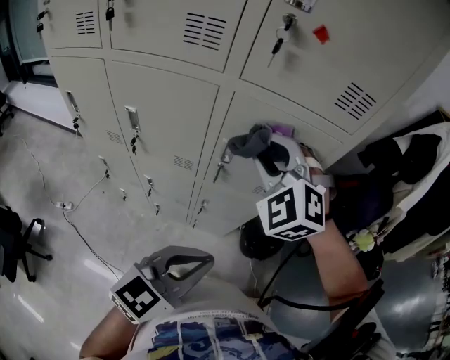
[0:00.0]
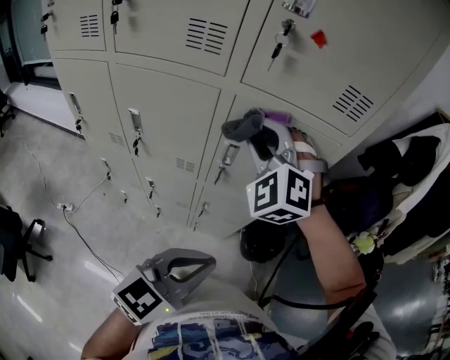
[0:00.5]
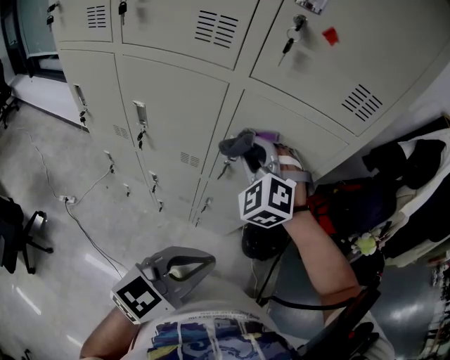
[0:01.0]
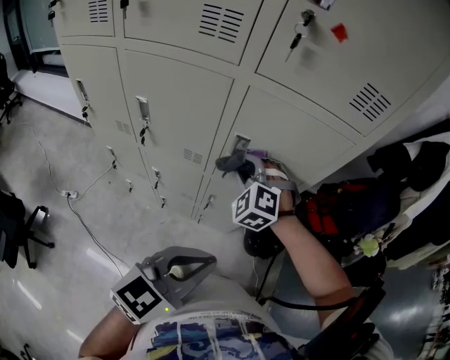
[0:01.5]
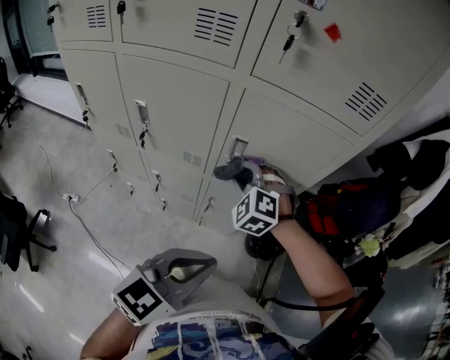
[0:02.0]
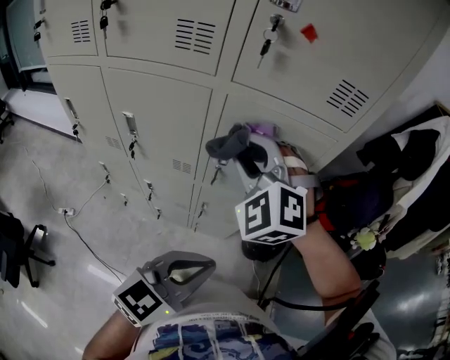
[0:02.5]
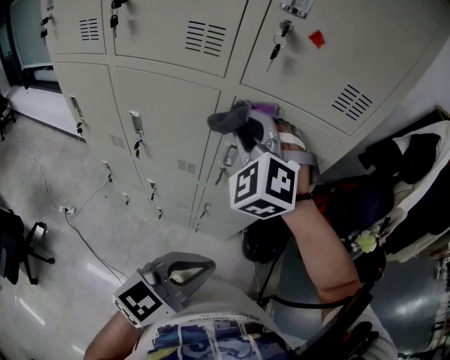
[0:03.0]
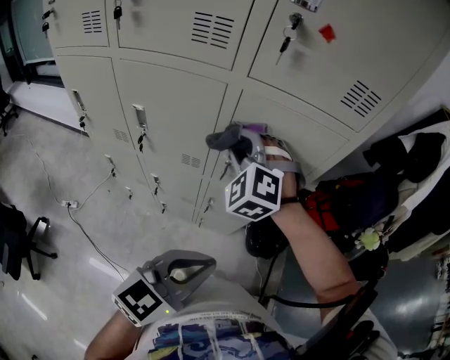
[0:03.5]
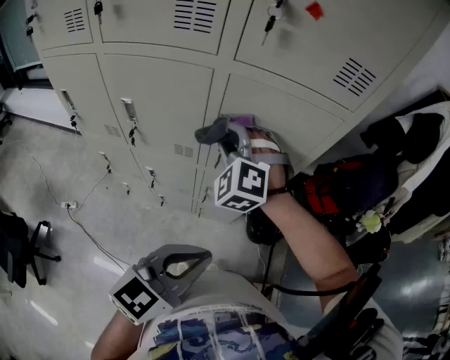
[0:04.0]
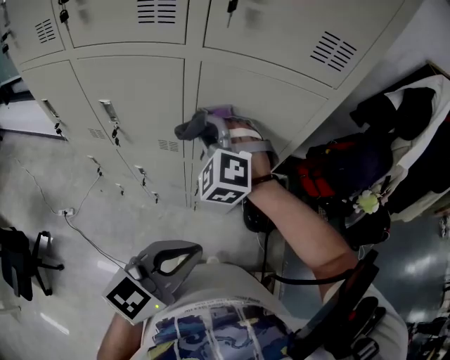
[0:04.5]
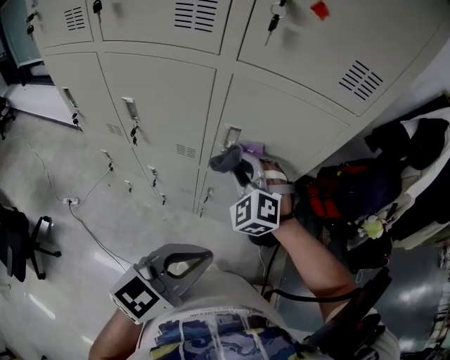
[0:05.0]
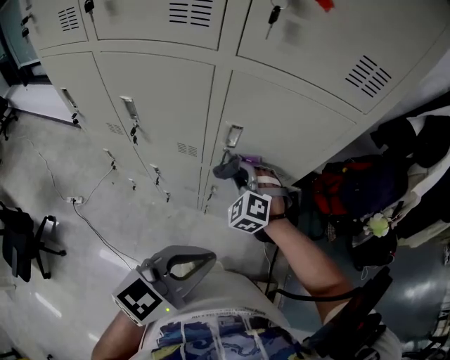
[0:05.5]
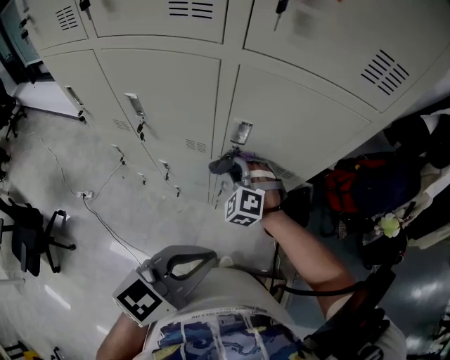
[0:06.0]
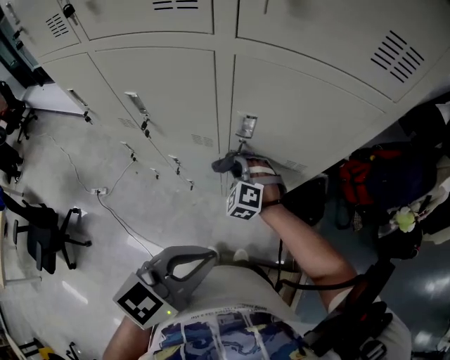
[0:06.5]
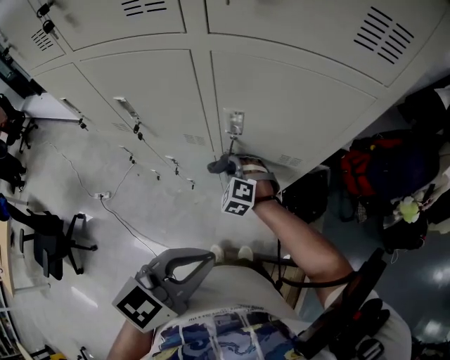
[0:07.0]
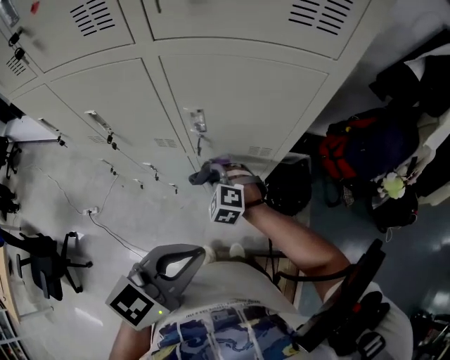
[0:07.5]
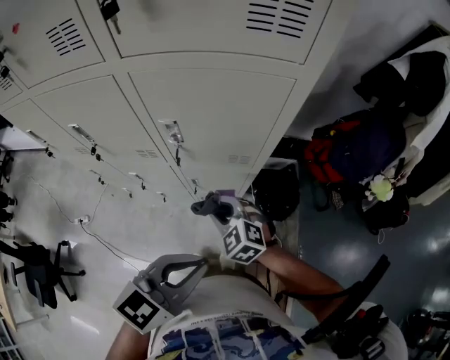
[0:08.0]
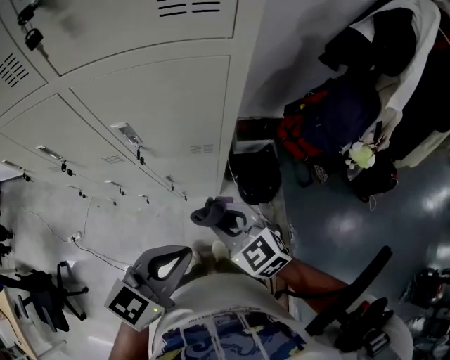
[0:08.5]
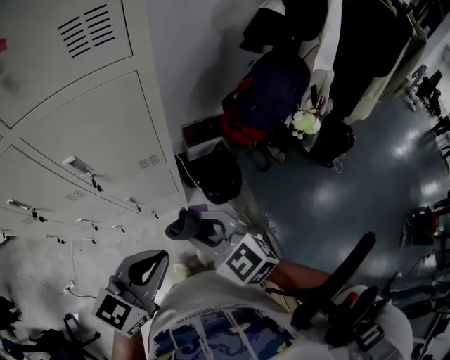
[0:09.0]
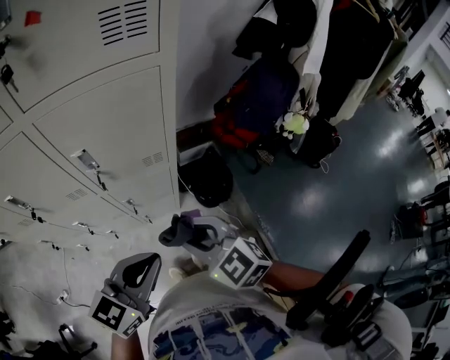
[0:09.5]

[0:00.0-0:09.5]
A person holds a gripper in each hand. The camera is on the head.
0.0 to 2.0 s: The right gripper heads downward, covering some 20 cm.
2.0 to 4.0 s: The right gripper heads upward, covering about 10 cm.
4.0 to 5.5 s: The right gripper goes about 15 cm downward.
5.5 to 7.5 s: The right gripper travels downward by about 10 cm.
7.5 to 9.5 s: The right gripper is displaced upward, backward and to the right by roughly 30 cm, and rotates around the line of its fingers by some 40 degrees, clockwise from behind.

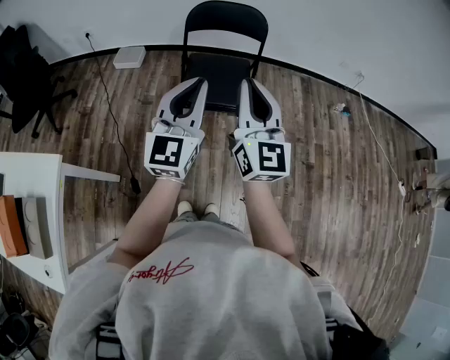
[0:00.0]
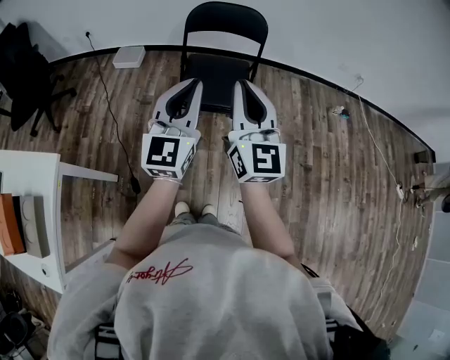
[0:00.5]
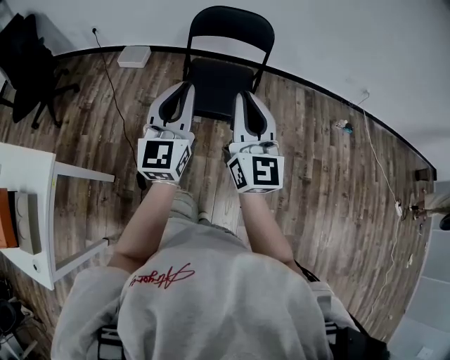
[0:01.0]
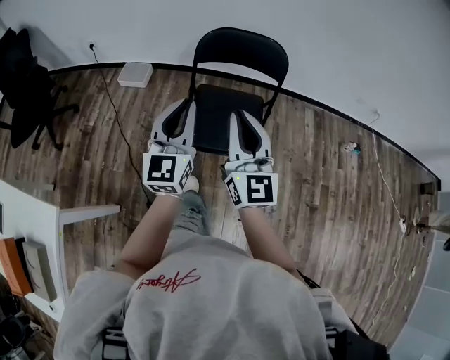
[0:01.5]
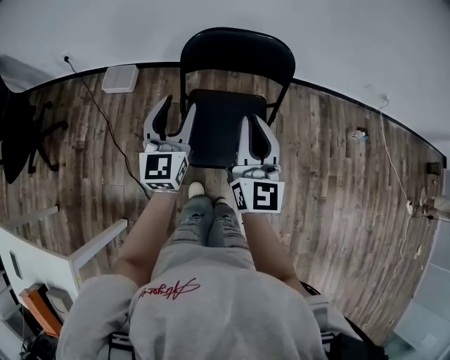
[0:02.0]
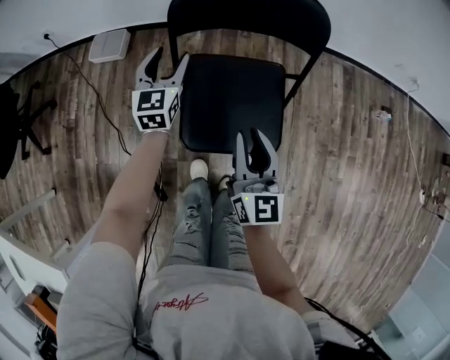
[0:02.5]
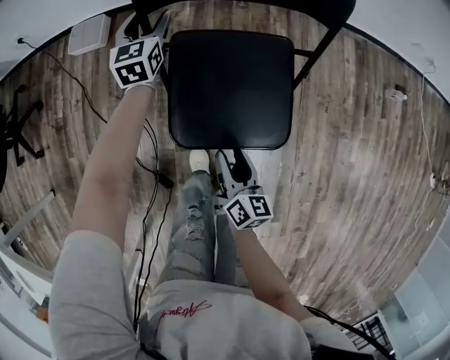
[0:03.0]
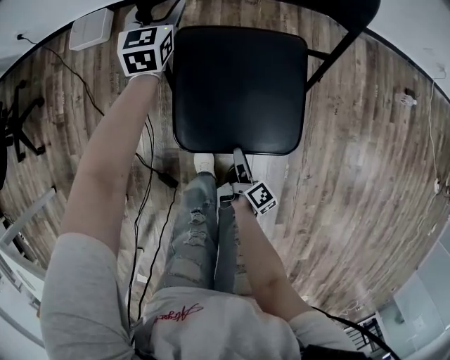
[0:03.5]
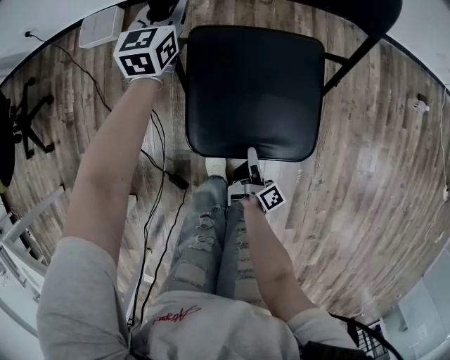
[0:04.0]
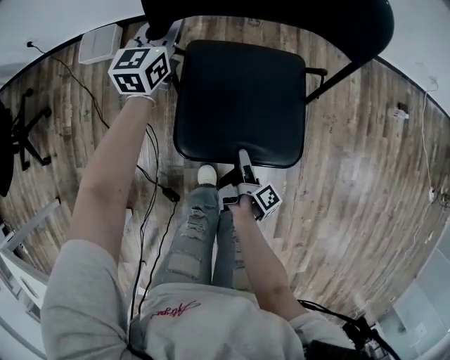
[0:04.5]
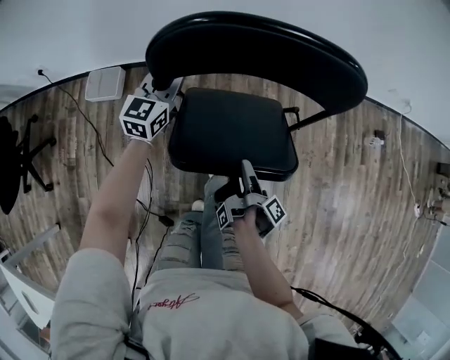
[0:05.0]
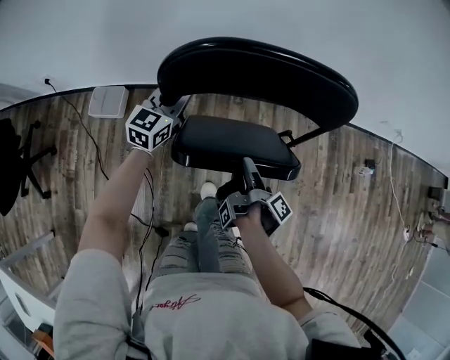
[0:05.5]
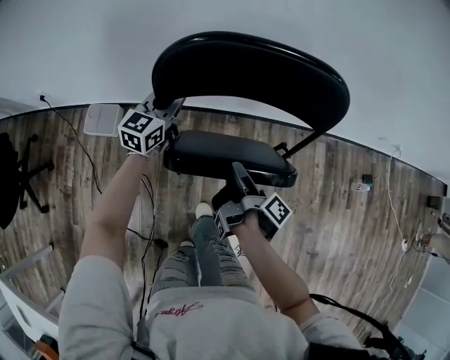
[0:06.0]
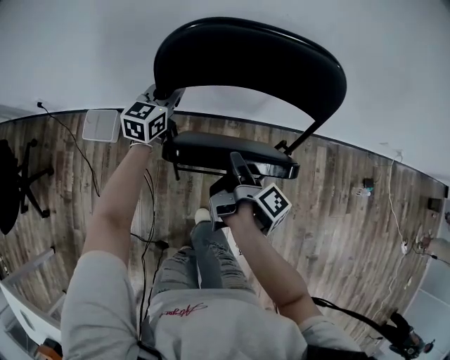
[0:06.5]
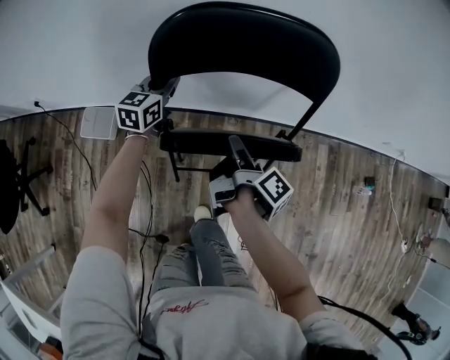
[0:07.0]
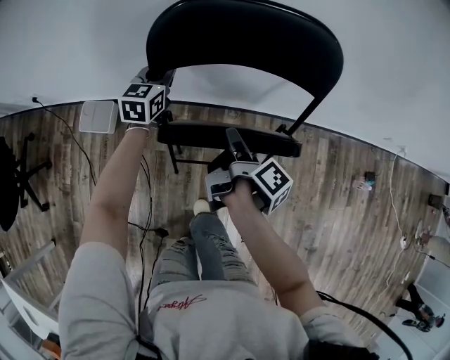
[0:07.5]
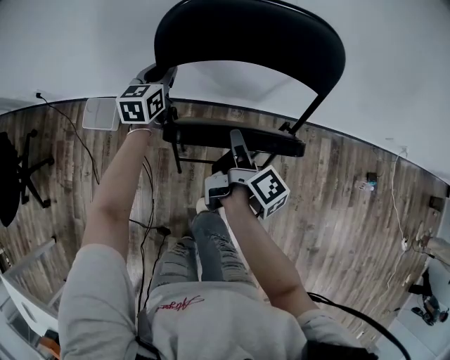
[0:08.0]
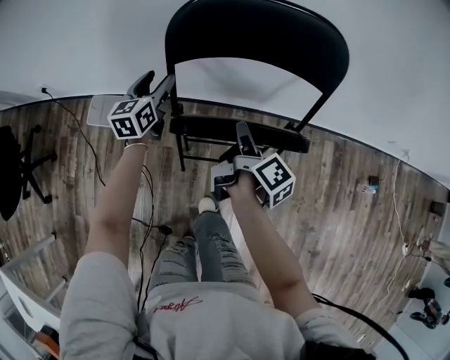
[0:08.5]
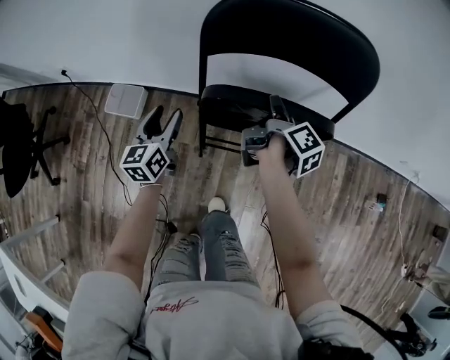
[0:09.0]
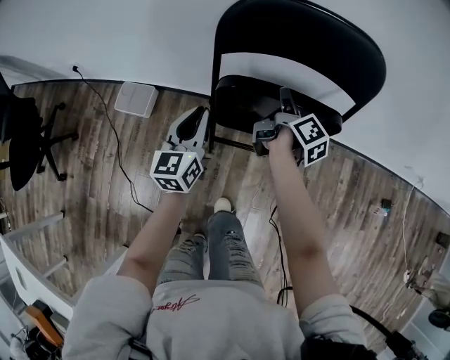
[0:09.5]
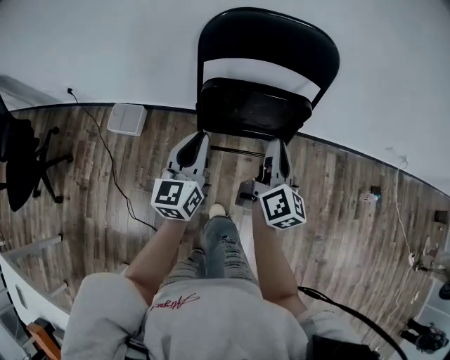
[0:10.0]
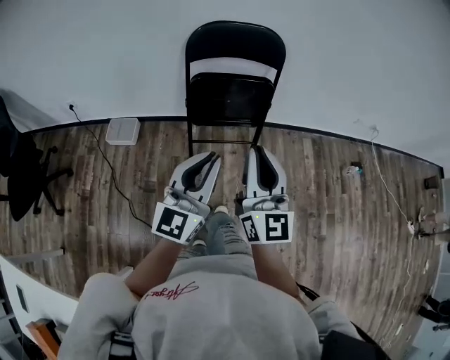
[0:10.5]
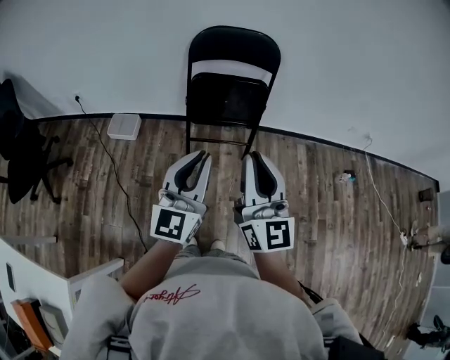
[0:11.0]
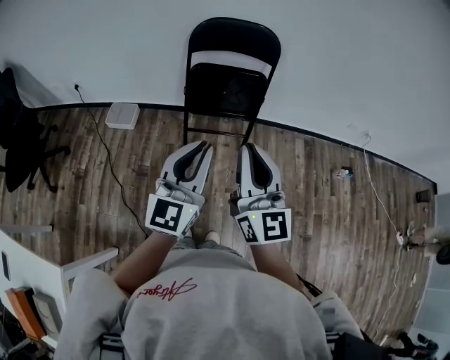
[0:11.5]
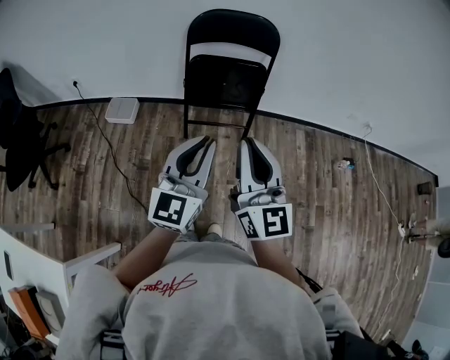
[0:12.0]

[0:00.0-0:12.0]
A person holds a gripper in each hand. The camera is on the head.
0.0 to 2.0 s: The grippers both shift forward by approximately 35 cm. The left gripper opens its fingers.
2.0 to 4.0 s: The right gripper heads downward, covering approximately 50 cm, rolls clockwise, seen from behind, by about 80 degrees, and opens up. The left gripper heads downward and forward, covering about 40 cm, and closes.
4.0 to 6.0 s: The left gripper shifts some 20 cm forward and upward, while the right gripper is displaced forward and upward by about 50 cm, swivels about 20 degrees, and closes its fingers.
6.0 to 8.0 s: The left gripper shifts approximately 10 cm forward and to the left. The right gripper travels forward by roughly 10 cm, and turns by about 20 degrees.
8.0 to 10.0 s: The left gripper heads backward and upward, covering approximately 30 cm, and opens, then closes once more, while the right gripper travels upward and backward by roughly 15 cm, and twists approximately 40 degrees counterclockwise, seen from behind.
10.0 to 12.0 s: Both grippers move backward and upward, about 40 cm. The right gripper changes its angle by about 40 degrees. Meanwhile the left gripper swivels some 20 degrees.

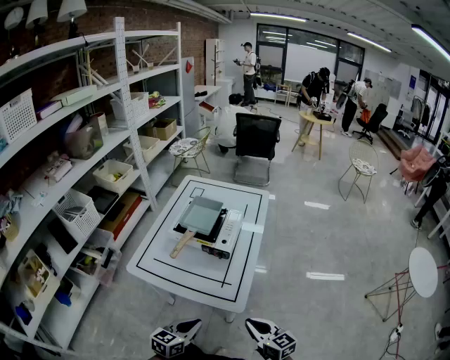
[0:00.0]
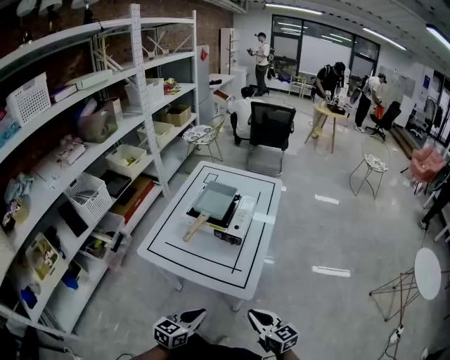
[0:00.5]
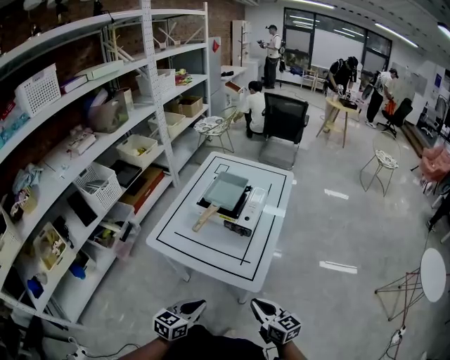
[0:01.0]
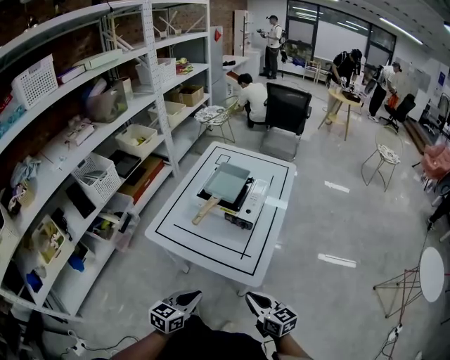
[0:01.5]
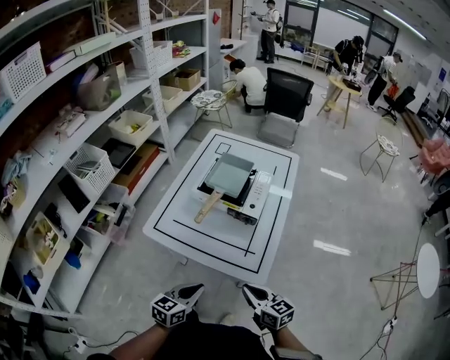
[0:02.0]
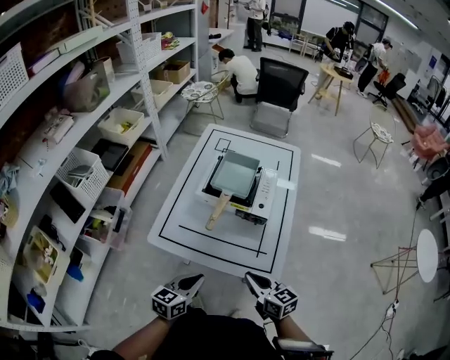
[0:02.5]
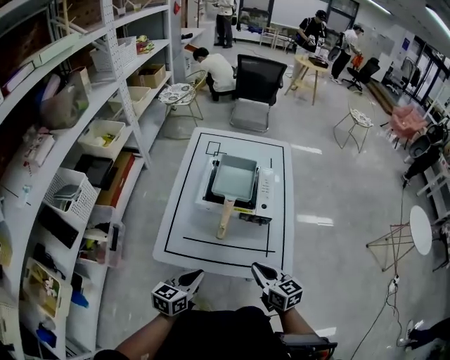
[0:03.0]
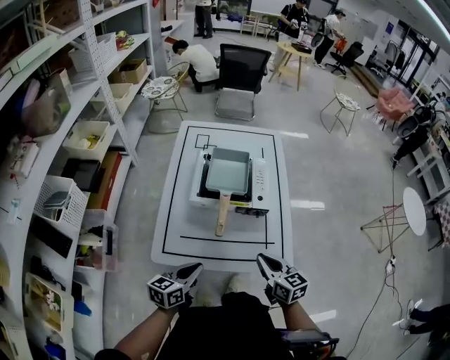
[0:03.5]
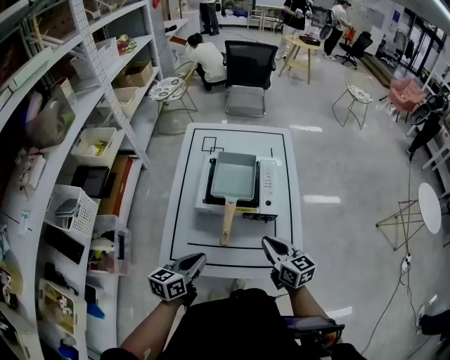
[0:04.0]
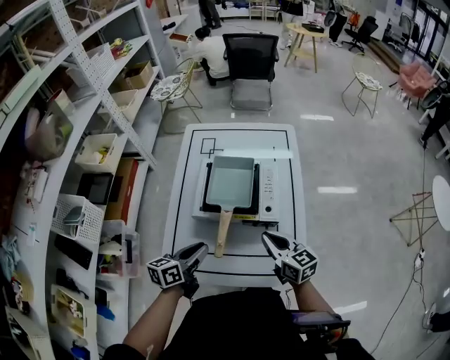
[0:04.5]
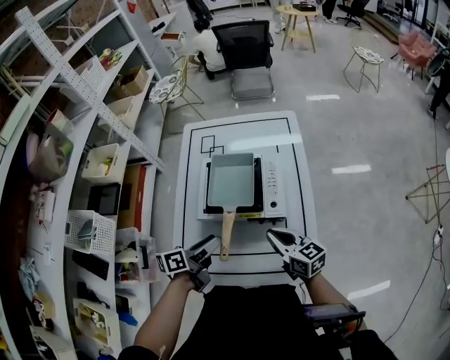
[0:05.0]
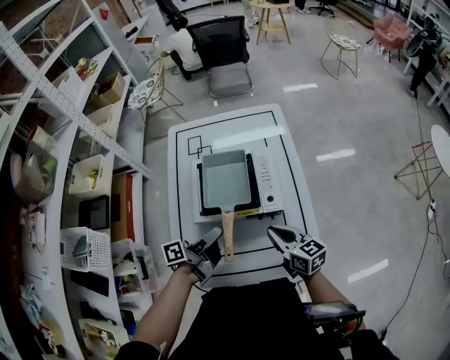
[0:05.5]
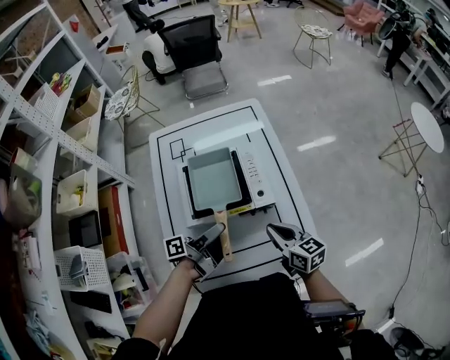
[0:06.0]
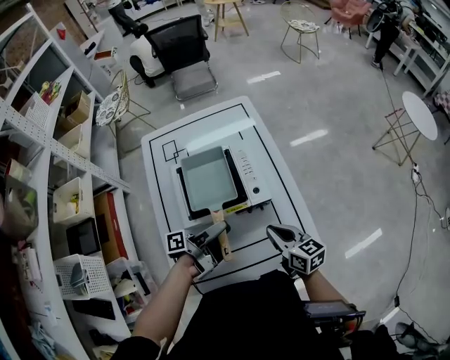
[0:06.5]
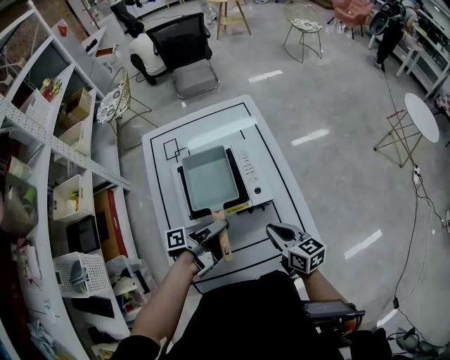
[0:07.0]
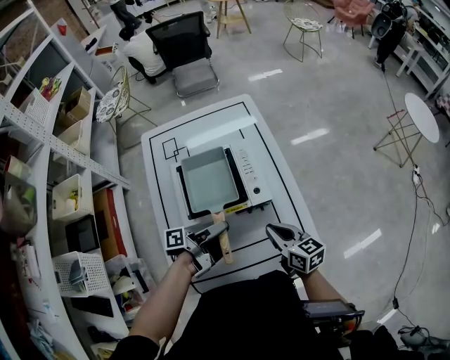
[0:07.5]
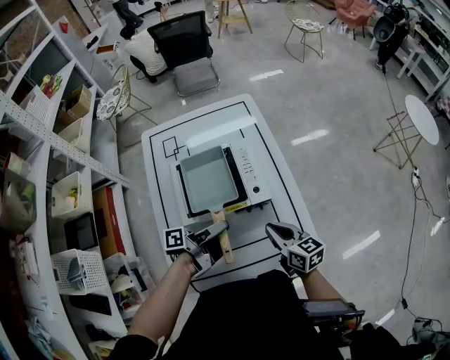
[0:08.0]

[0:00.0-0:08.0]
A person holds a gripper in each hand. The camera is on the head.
0.0 to 2.0 s: The left gripper goes approximately 5 cm to the left, while the right gripper is displaced to the left and forward by approximately 10 cm.
2.0 to 4.0 s: The grippers both shift forward and to the left by about 20 cm. The right gripper rotates roughly 20 degrees.
4.0 to 6.0 s: The right gripper ends up approximately 5 cm from where it was. The left gripper goes approximately 15 cm forward and to the right, twists about 50 degrees counterclockwise, seen from behind, and opens up.
6.0 to 8.0 s: The left gripper closes up.
